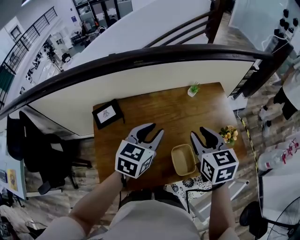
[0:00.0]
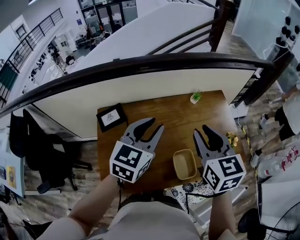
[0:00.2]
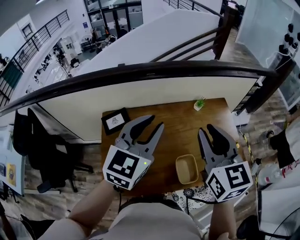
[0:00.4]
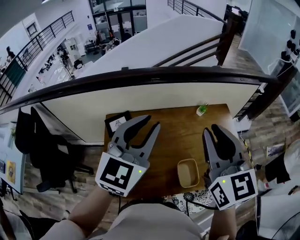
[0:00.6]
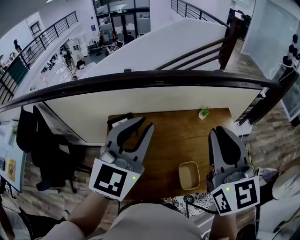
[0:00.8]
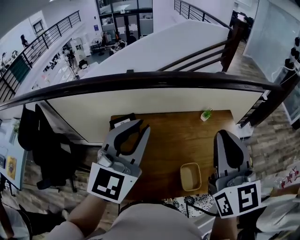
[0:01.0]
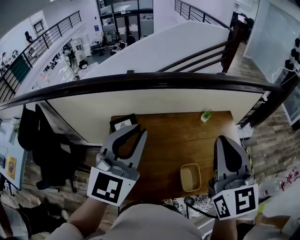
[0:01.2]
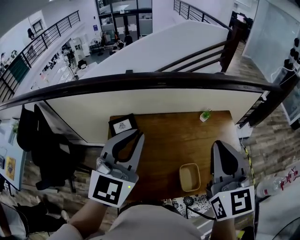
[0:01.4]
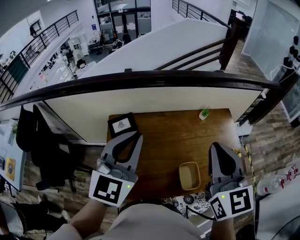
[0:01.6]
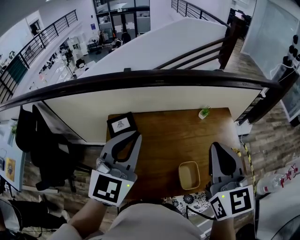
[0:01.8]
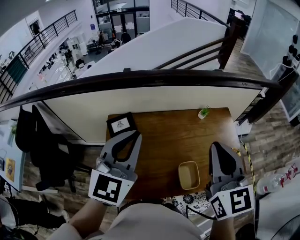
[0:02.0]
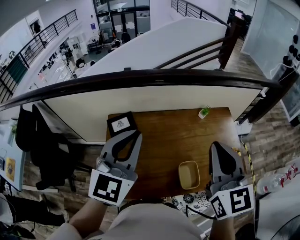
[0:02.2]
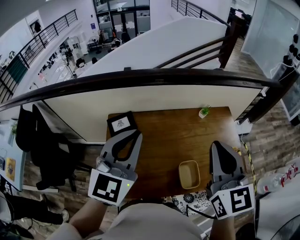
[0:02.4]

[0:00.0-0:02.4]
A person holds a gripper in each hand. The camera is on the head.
0:00.0 to 0:01.2: The left gripper is displaced upward and to the left by about 25 cm, and rotates roughly 40 degrees. Meanwhile the right gripper heads upward, covering about 20 cm, and turns by roughly 30 degrees.
0:01.2 to 0:02.4: The grippers stay close to where they were, moving slightly.

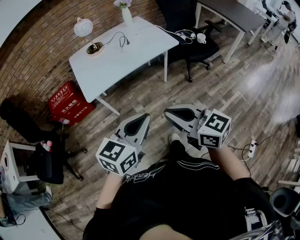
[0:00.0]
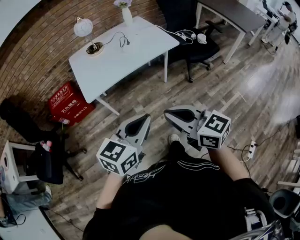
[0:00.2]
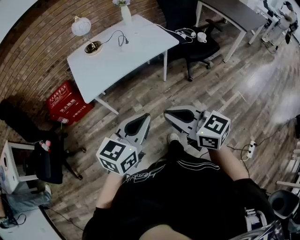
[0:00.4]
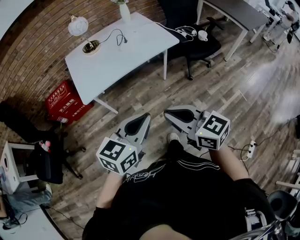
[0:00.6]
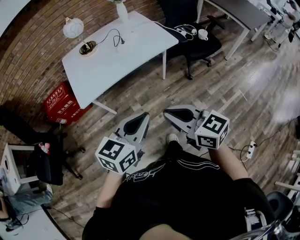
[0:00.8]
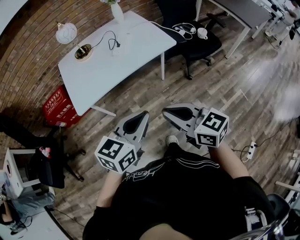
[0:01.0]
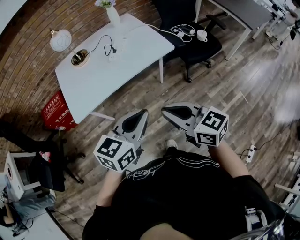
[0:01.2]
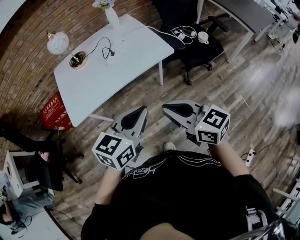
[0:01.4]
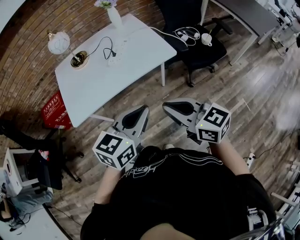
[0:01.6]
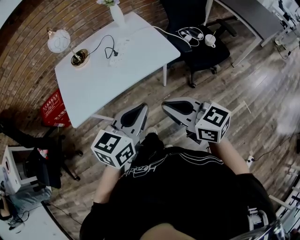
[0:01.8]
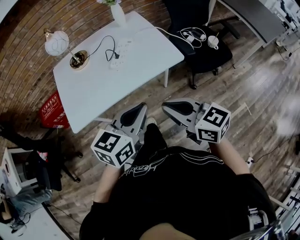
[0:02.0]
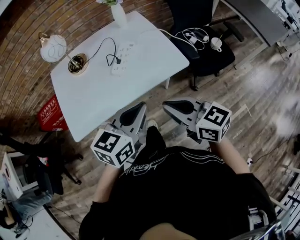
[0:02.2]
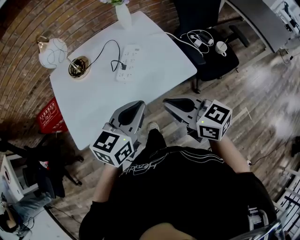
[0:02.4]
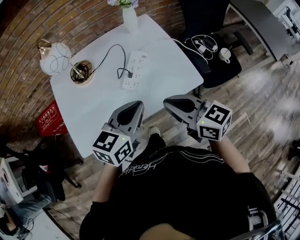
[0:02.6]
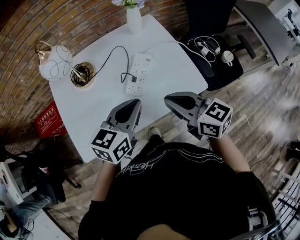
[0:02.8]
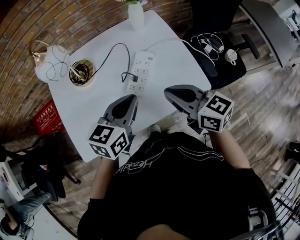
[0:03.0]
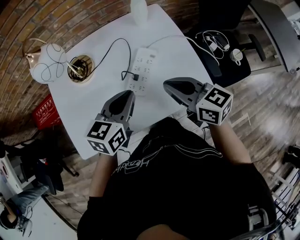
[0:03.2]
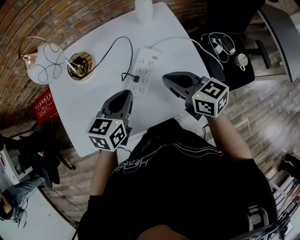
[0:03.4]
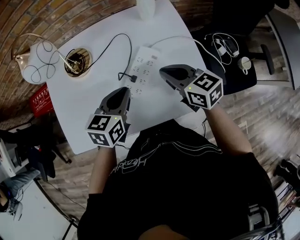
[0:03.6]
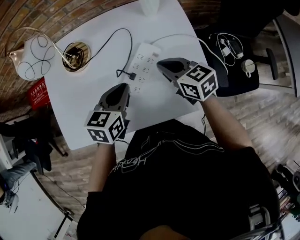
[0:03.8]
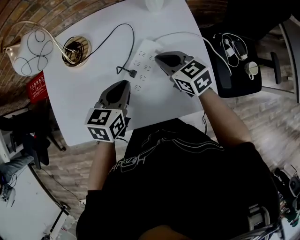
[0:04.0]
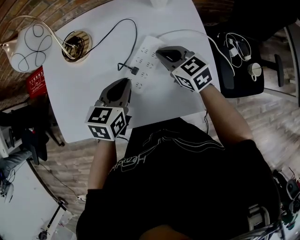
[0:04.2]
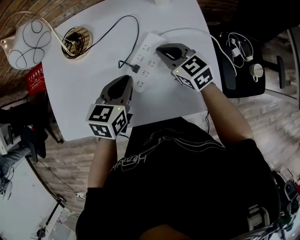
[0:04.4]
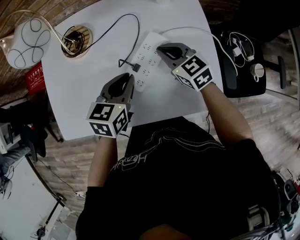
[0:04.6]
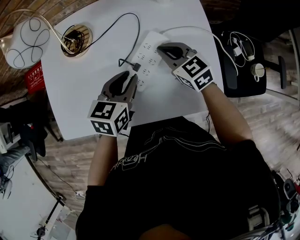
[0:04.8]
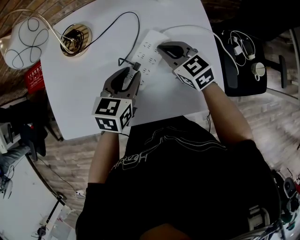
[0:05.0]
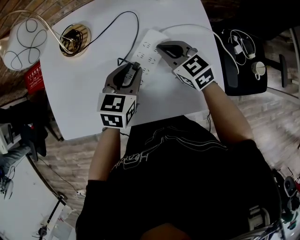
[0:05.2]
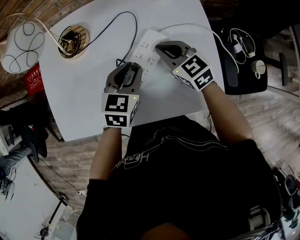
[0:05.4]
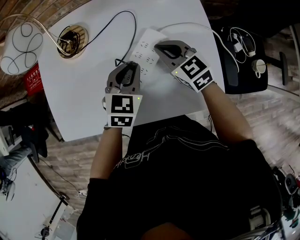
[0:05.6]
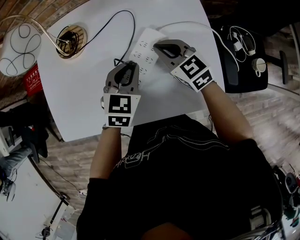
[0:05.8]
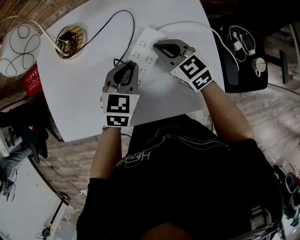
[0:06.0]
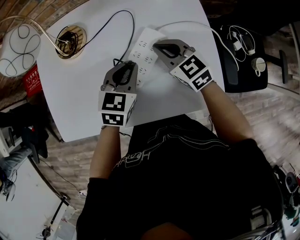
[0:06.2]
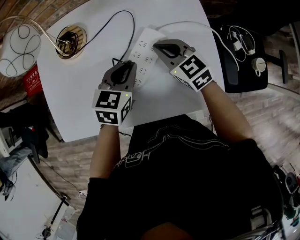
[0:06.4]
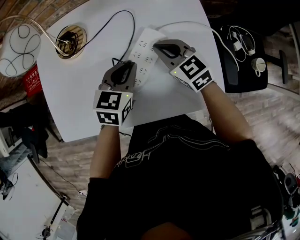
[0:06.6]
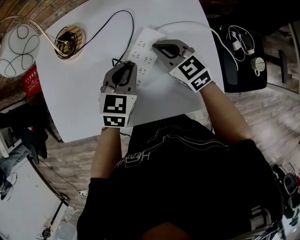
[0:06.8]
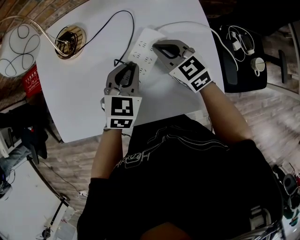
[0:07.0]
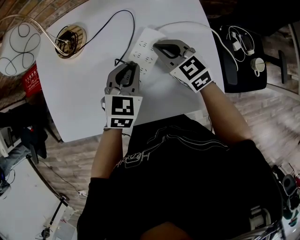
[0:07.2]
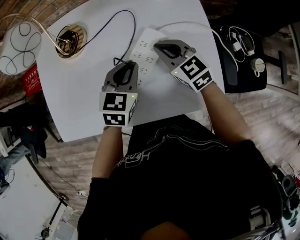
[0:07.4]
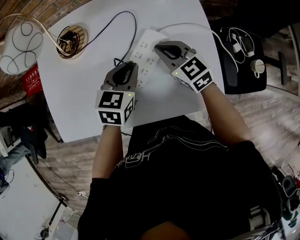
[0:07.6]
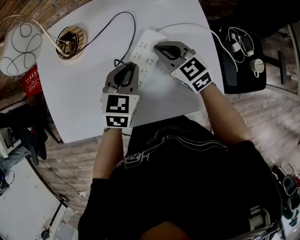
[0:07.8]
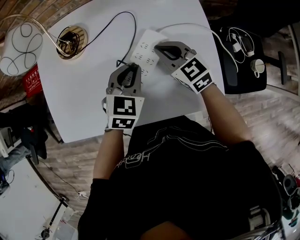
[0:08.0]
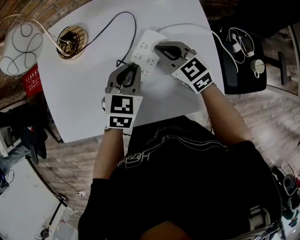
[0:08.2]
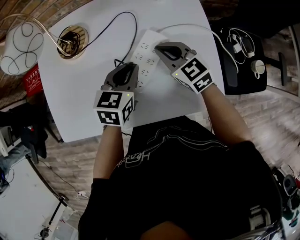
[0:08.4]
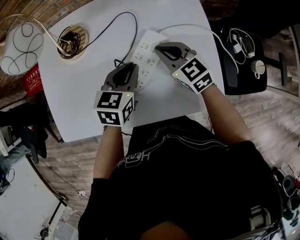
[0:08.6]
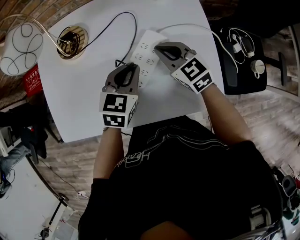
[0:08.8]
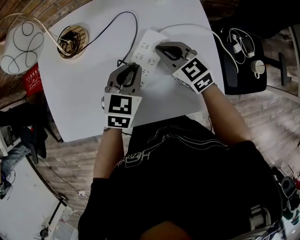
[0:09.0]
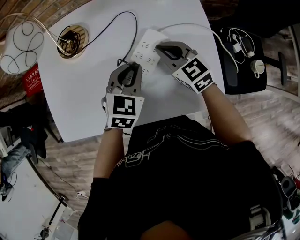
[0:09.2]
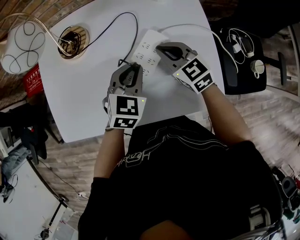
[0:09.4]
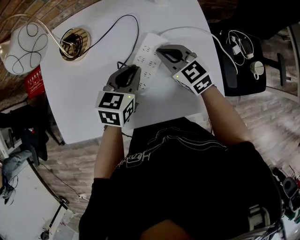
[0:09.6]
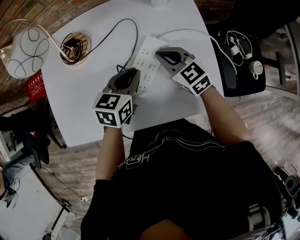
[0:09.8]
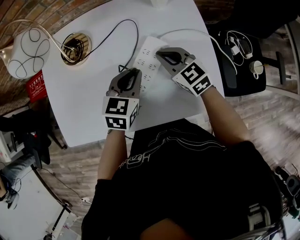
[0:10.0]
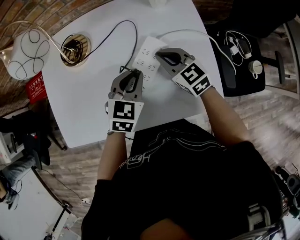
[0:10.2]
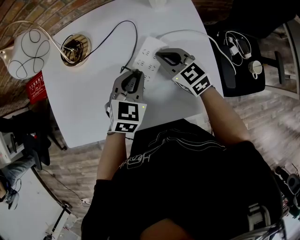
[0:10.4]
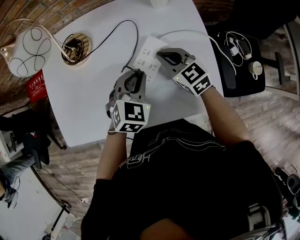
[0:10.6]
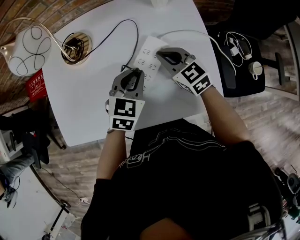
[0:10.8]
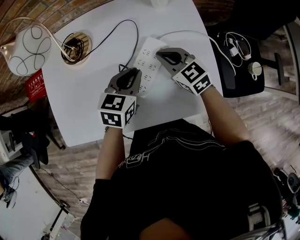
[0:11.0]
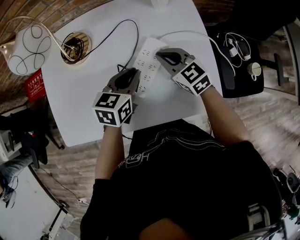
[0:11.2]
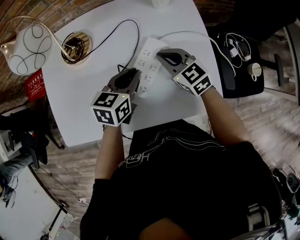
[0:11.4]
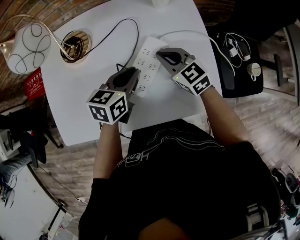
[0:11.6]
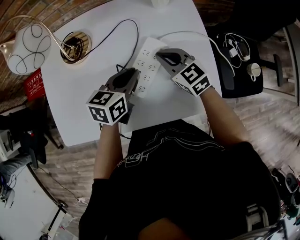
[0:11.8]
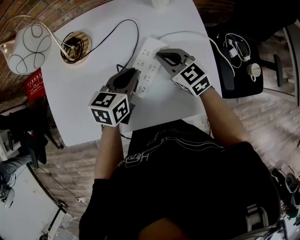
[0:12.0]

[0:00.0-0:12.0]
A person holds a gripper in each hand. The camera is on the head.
0:00.0 to 0:01.6: Both grippers move forward and to the right, about 25 cm.
0:01.6 to 0:03.0: The grippers both shift forward by some 35 cm.
0:03.0 to 0:04.4: The right gripper shifts some 25 cm forward and downward, and swivels some 30 degrees. Meanwhile the left gripper moves downward and forward, about 15 cm, and changes its angle by approximately 20 degrees.
0:04.4 to 0:06.0: The left gripper ends up about 5 cm from where it was, and changes its angle by approximately 20 degrees.
0:06.0 to 0:10.4: The grippers stay close to where they were, moving slightly.
0:10.4 to 0:12.0: The left gripper rotates approximately 30 degrees.

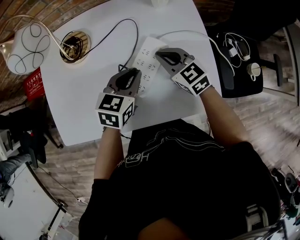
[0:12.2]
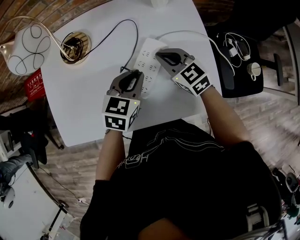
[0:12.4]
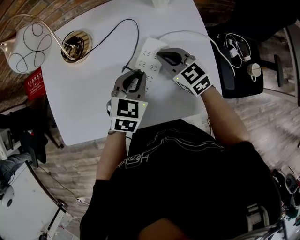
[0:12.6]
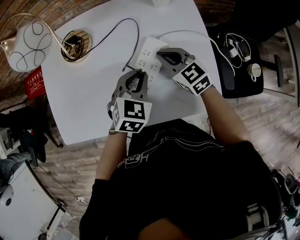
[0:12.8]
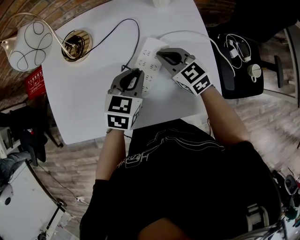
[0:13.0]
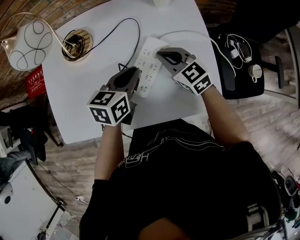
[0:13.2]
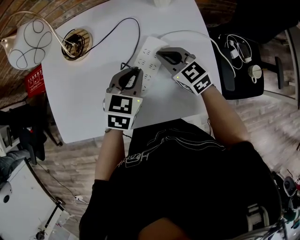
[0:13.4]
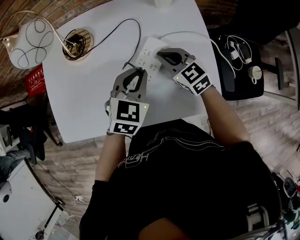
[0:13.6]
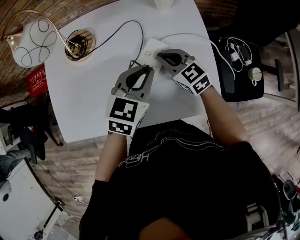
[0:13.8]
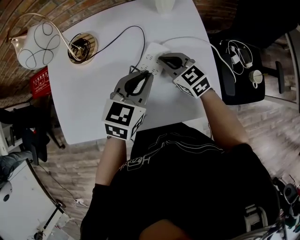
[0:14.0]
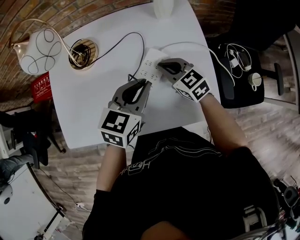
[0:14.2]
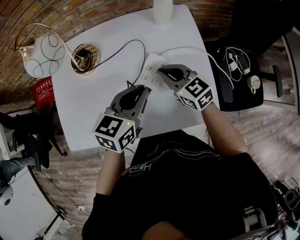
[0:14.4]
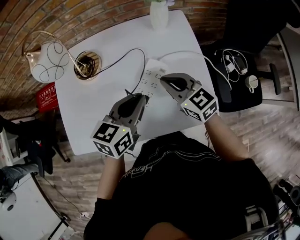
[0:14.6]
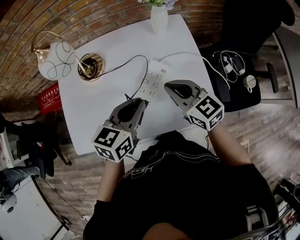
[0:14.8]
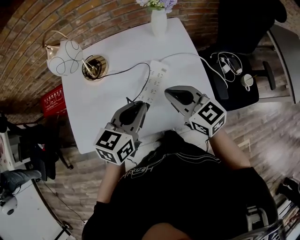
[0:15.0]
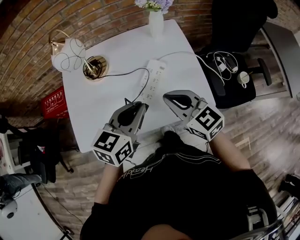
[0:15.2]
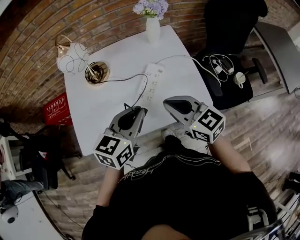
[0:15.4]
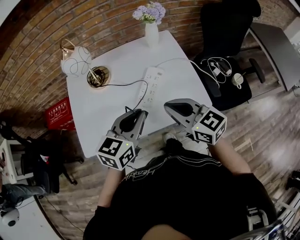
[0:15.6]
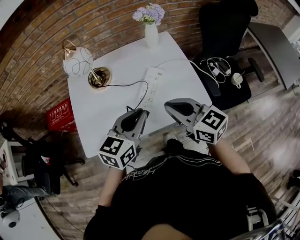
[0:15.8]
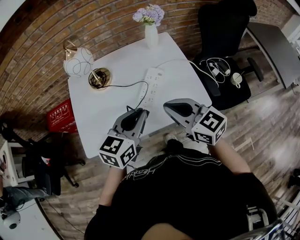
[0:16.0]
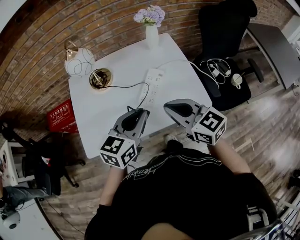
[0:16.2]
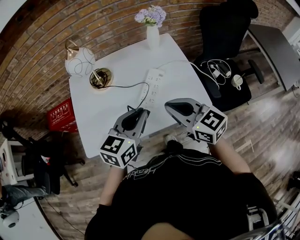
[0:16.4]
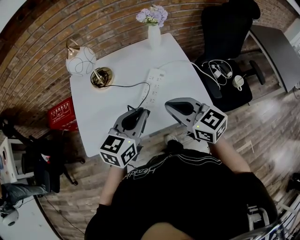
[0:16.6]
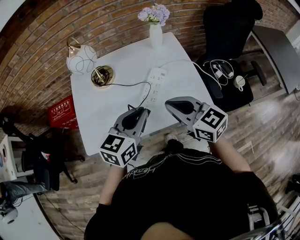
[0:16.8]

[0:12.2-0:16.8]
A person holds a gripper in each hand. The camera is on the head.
0:12.2 to 0:13.8: The left gripper travels upward by some 5 cm.
0:13.8 to 0:15.2: The right gripper goes roughly 25 cm upward and backward. Meanwhile the left gripper shifts roughly 15 cm upward, backward and to the left.
0:15.2 to 0:16.8: The right gripper moves backward, about 5 cm; the left gripper ends up roughly 5 cm from where it was.

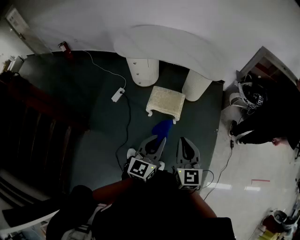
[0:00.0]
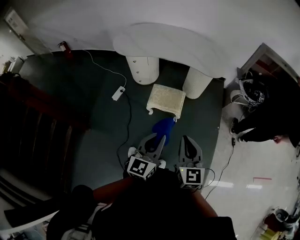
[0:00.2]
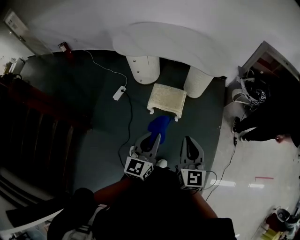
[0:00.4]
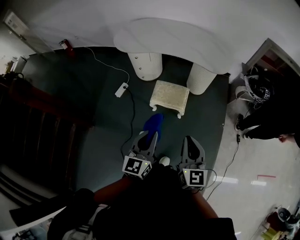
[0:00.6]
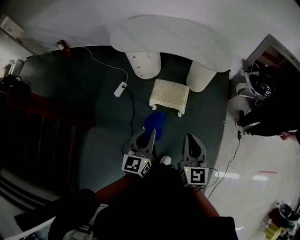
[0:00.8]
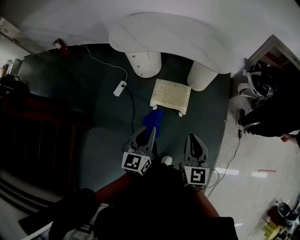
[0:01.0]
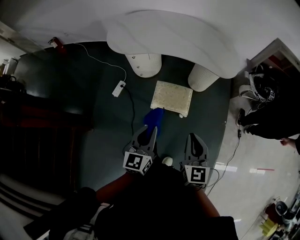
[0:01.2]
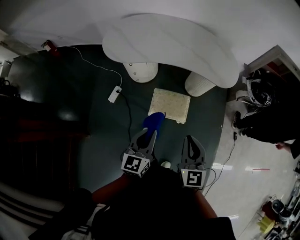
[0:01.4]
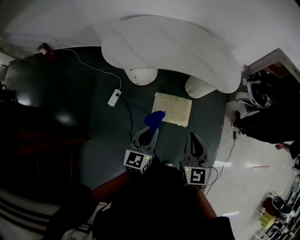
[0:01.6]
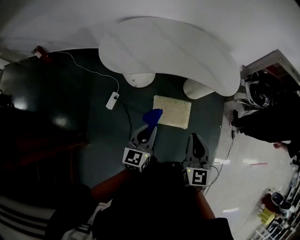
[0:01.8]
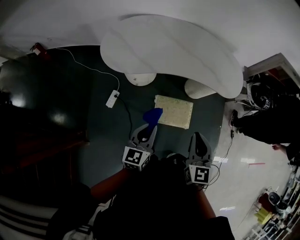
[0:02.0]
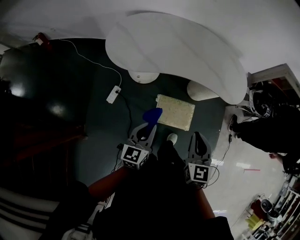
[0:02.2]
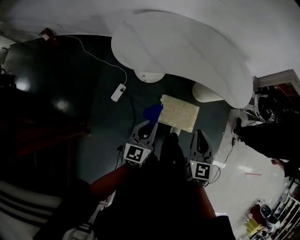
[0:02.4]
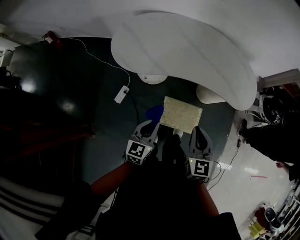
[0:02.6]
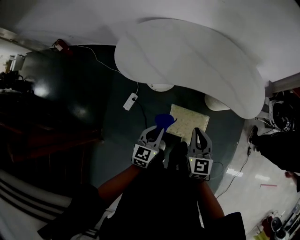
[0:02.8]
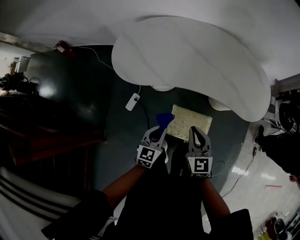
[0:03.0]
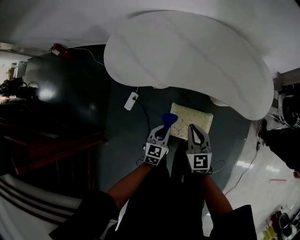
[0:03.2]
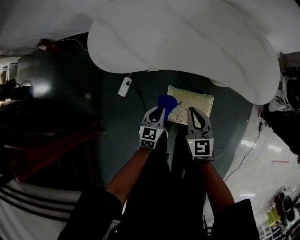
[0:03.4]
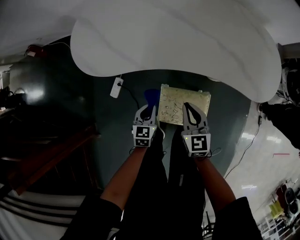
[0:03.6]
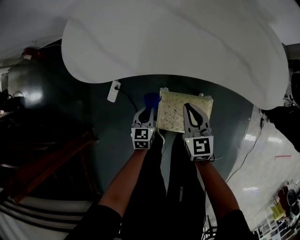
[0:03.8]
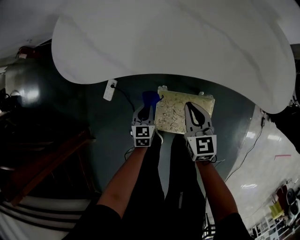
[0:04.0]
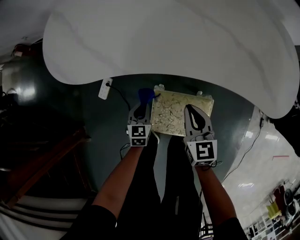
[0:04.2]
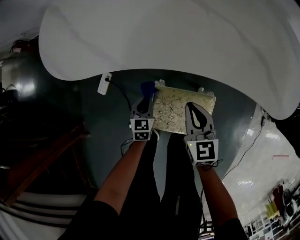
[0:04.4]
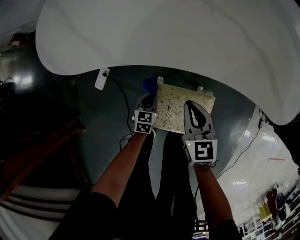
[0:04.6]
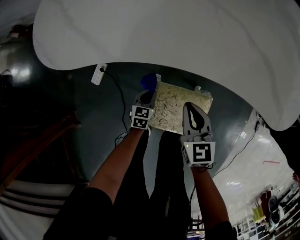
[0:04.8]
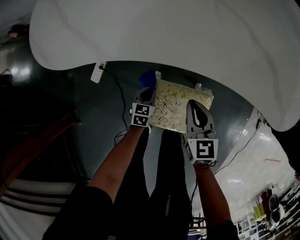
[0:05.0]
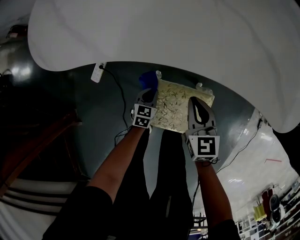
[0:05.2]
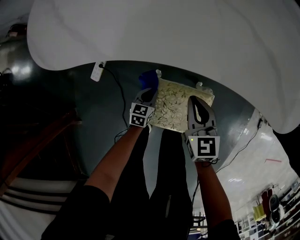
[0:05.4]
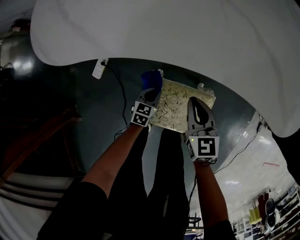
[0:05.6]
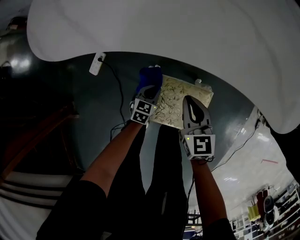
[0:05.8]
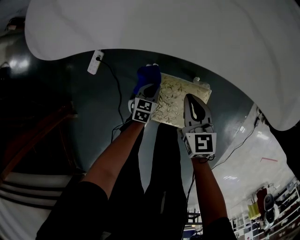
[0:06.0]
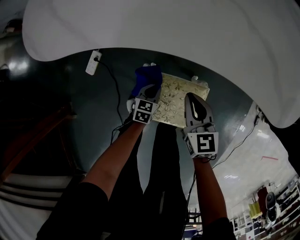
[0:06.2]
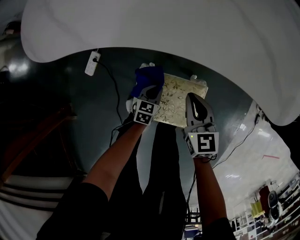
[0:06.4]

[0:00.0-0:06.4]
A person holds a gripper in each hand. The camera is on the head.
0:00.0 to 0:01.6: The left gripper heads forward and to the left, covering some 35 cm; the right gripper is displaced forward by some 30 cm.
0:01.6 to 0:03.2: The left gripper goes about 30 cm downward and forward, and swivels some 20 degrees; the right gripper is displaced forward and downward by roughly 30 cm.
0:03.2 to 0:04.8: The right gripper moves downward, about 25 cm; the left gripper heads downward, covering about 35 cm.
0:04.8 to 0:06.4: The right gripper is displaced to the right by roughly 5 cm, while the left gripper moves to the right, approximately 10 cm.
